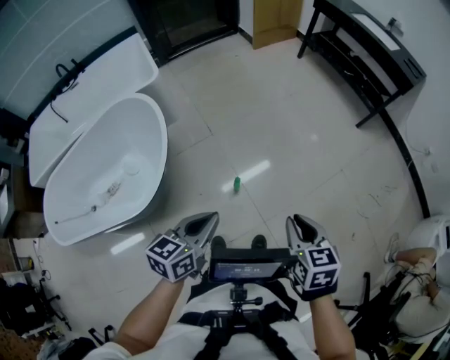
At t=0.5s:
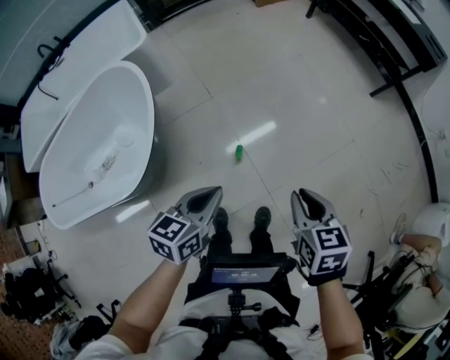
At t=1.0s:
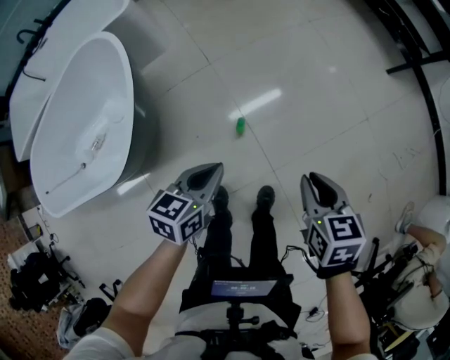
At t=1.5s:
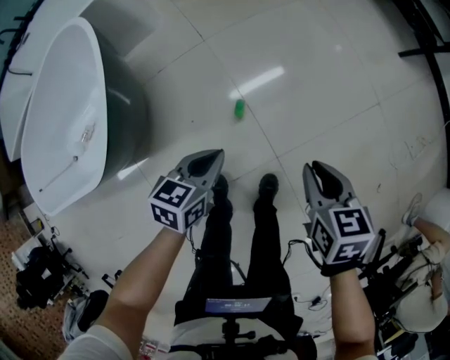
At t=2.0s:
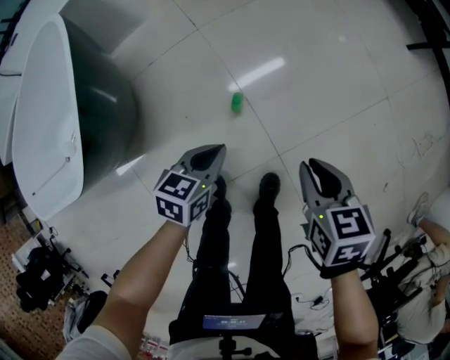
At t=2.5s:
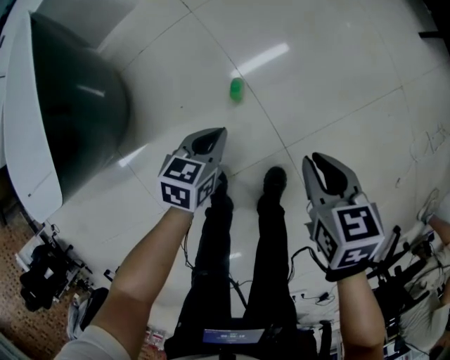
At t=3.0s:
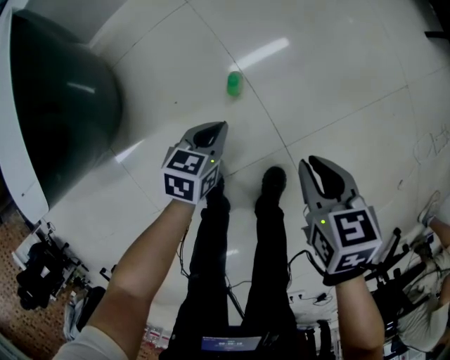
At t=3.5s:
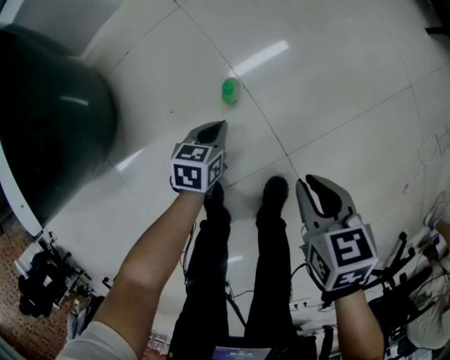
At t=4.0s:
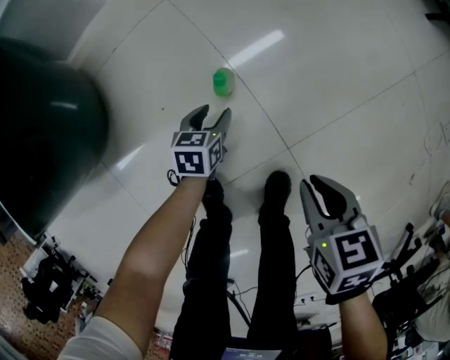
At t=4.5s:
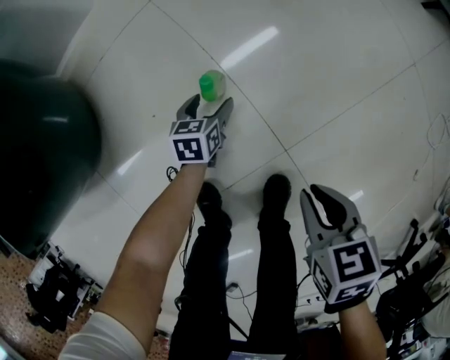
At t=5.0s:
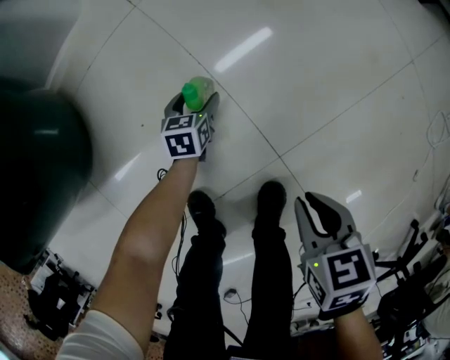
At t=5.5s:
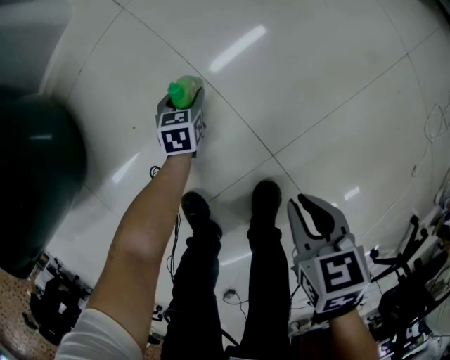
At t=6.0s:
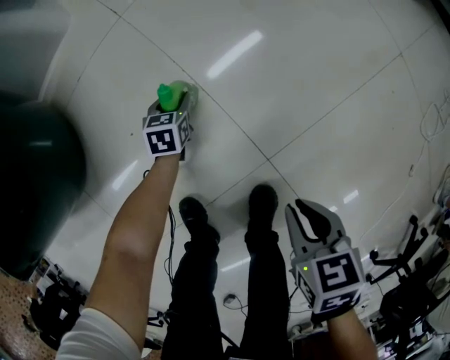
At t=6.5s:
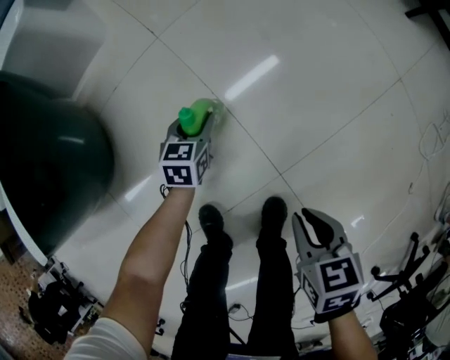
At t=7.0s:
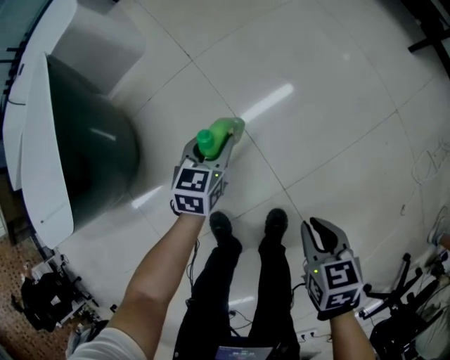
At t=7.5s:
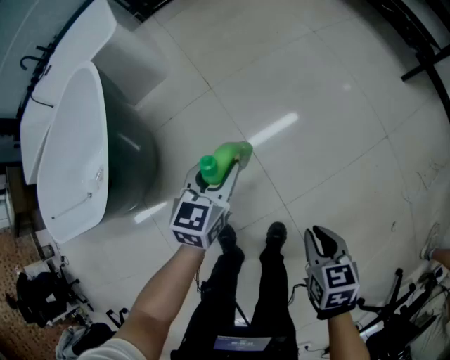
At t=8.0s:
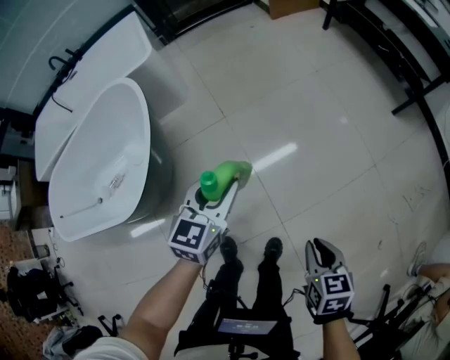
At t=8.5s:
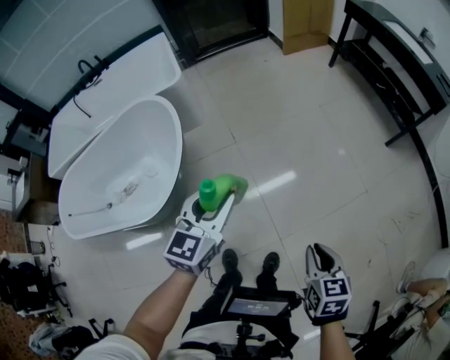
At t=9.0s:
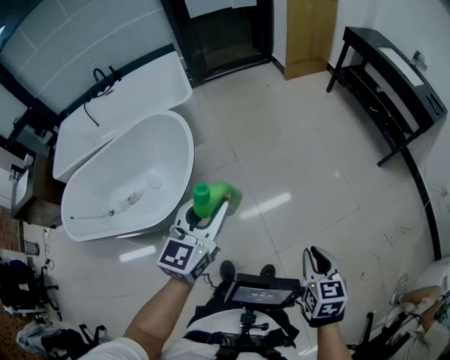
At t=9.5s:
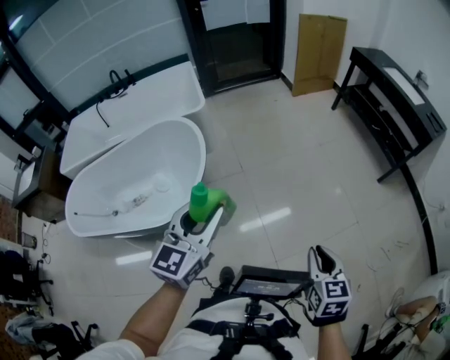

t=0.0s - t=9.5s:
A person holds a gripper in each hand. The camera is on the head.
t=0.0s - t=2.0s: Both grippers move downward, approximately 30 cm. The left gripper turns by about 20 degrees.
t=2.0s - t=4.0s: The left gripper is displaced downward by about 30 cm, and opens up, while the right gripper shifts approximately 15 cm downward.
t=4.0s - t=5.5s: The right gripper goes roughly 5 cm downward; the left gripper is displaced downward and forward by some 15 cm.
t=5.5s - t=7.5s: The right gripper goes roughly 20 cm upward; the left gripper shifts about 50 cm upward, and rotates about 20 degrees.
t=7.5s - t=9.5s: Both grippers move upward, some 35 cm. The left gripper swivels about 30 degrees. Meanwhile the right gripper rotates about 30 degrees.

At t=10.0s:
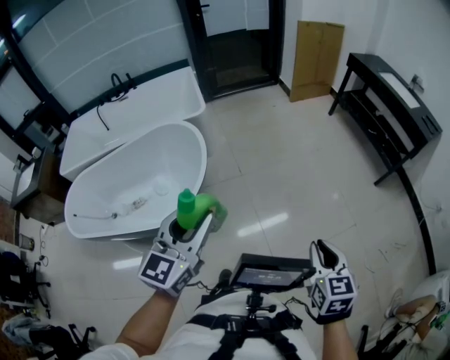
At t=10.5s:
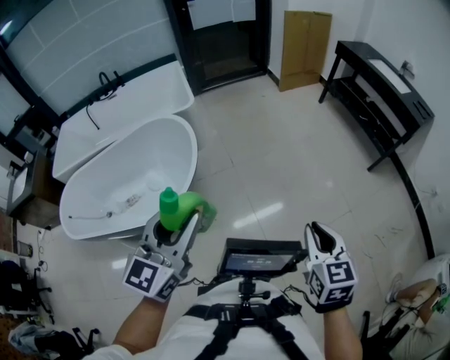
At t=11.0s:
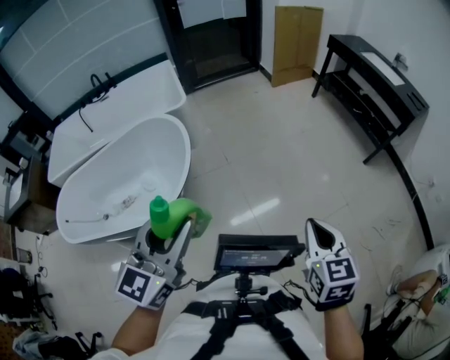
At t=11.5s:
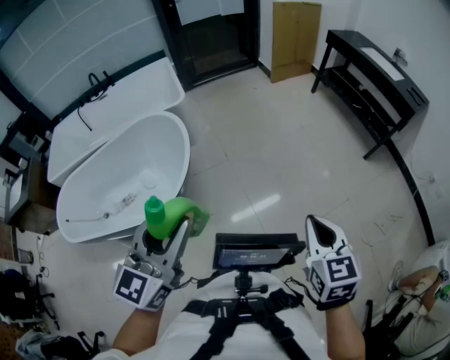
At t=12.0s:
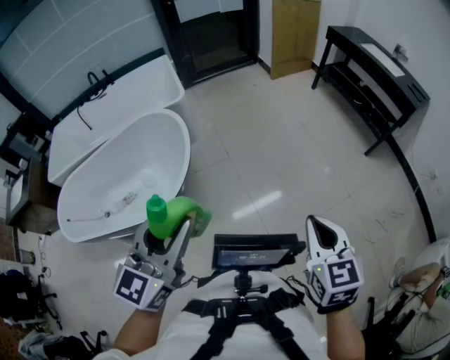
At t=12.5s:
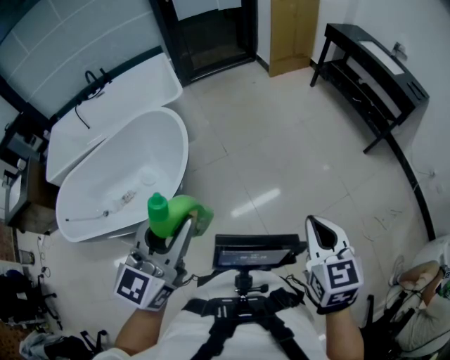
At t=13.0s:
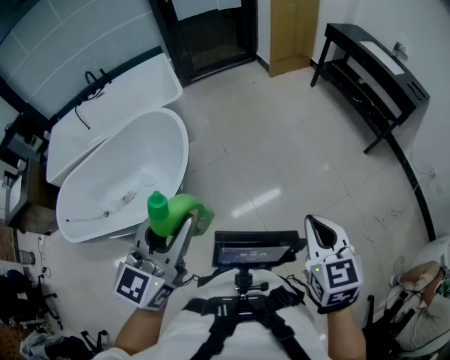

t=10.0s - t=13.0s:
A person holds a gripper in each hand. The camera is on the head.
t=10.0s - t=11.5s: The left gripper shifts about 5 cm backward.
t=11.5s - t=13.0s: The grippers move only a little.

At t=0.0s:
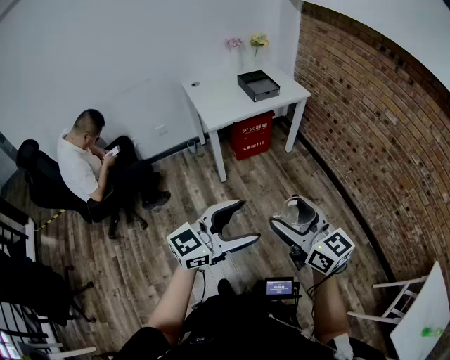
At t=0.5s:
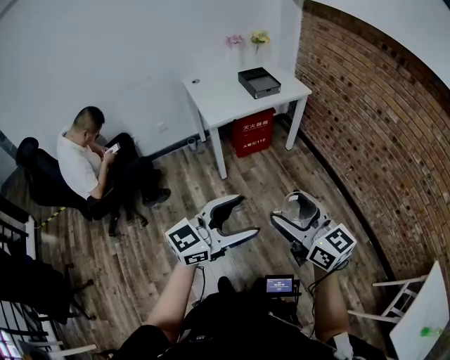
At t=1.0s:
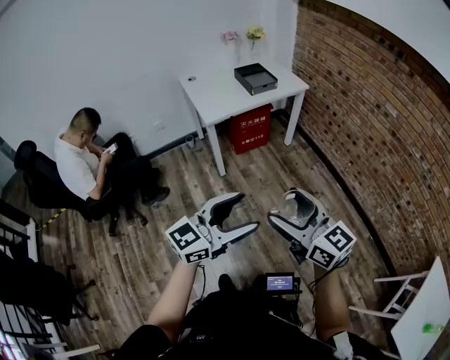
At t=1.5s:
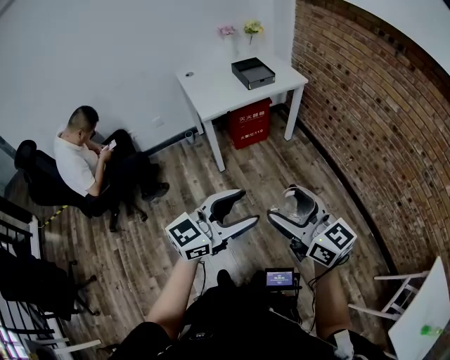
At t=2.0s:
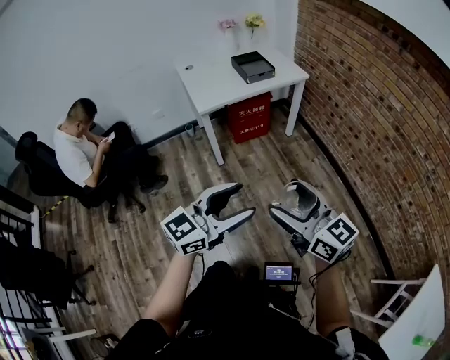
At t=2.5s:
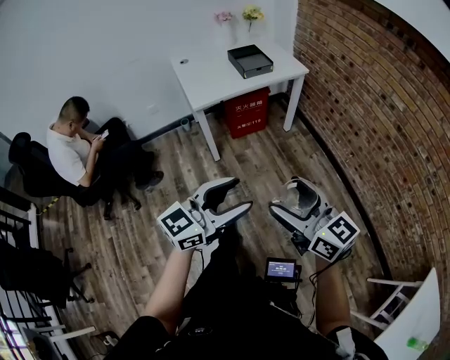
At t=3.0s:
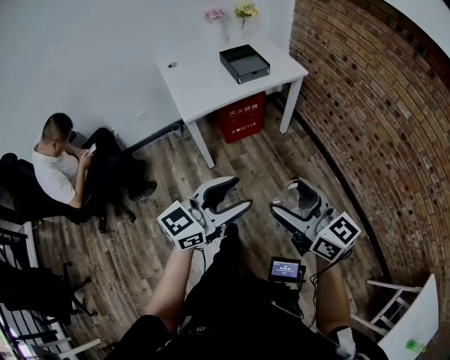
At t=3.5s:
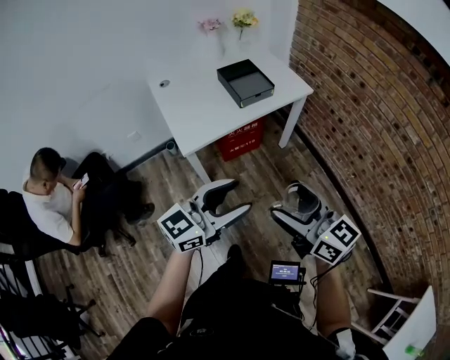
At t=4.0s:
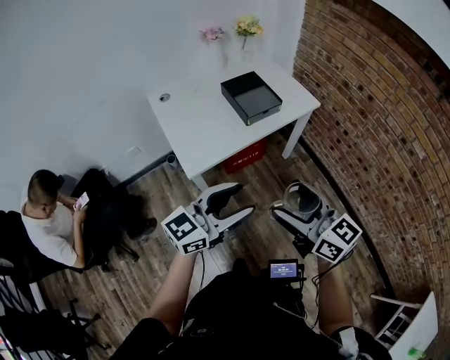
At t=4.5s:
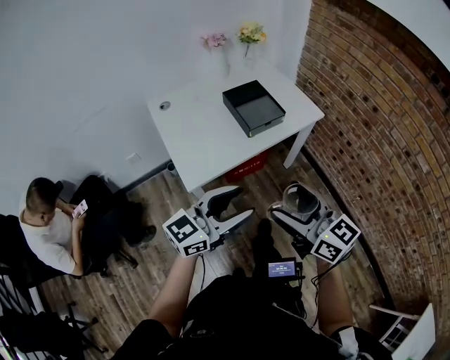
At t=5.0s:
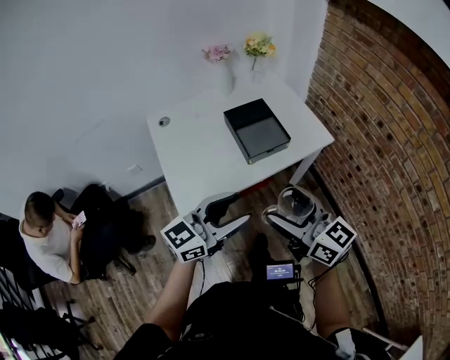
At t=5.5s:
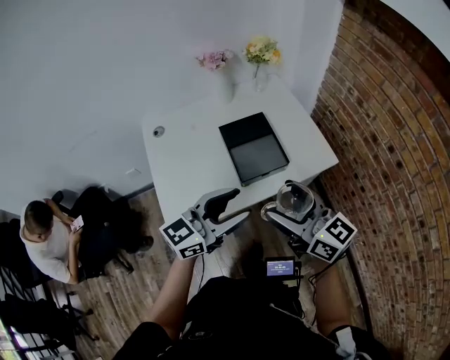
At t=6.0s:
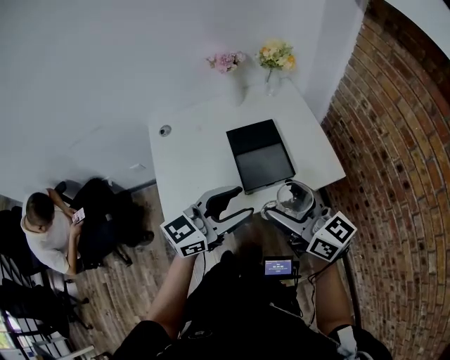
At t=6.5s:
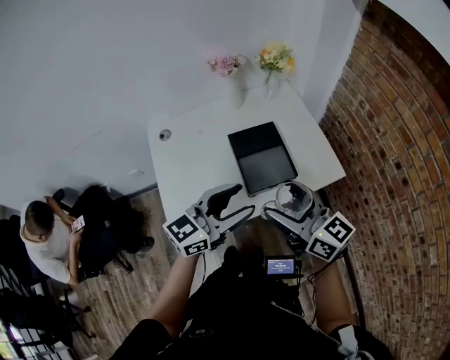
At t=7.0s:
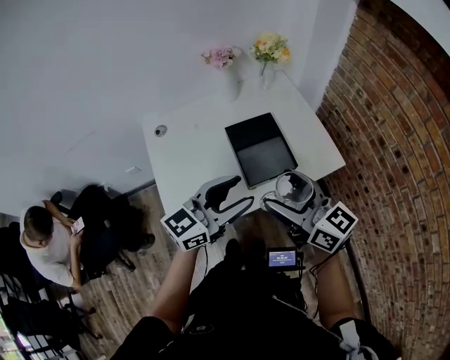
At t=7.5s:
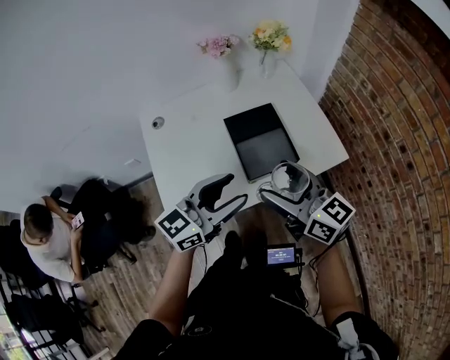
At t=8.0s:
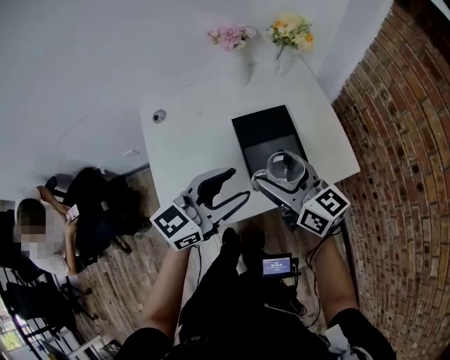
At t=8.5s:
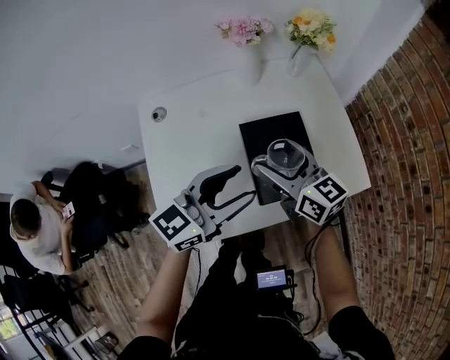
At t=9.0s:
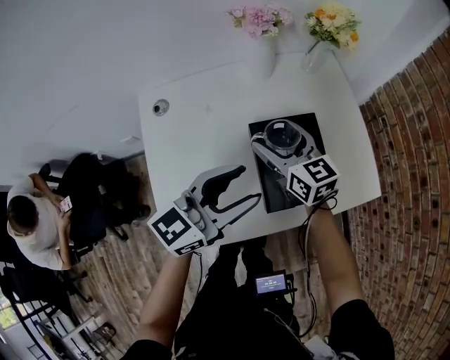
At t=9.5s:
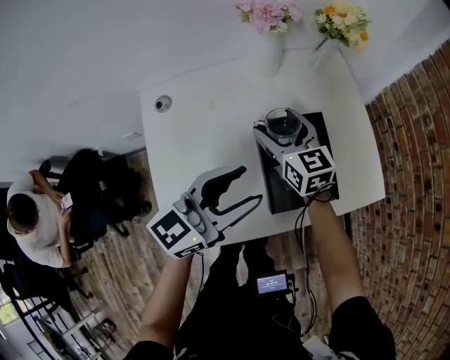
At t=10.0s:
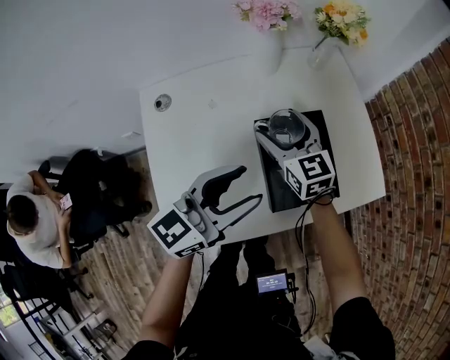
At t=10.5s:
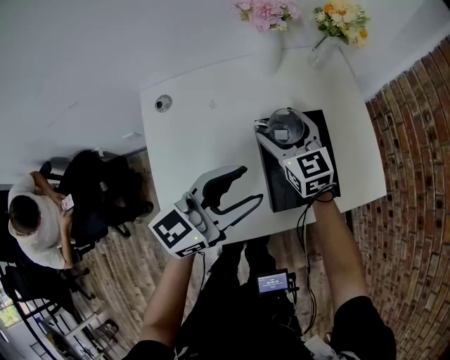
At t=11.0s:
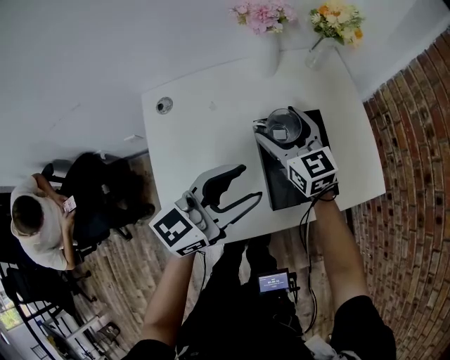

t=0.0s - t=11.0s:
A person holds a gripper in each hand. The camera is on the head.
t=0.0s - t=2.0s: Both grippers move to the right, some 5 cm.
t=2.0s - t=3.5s: Both grippers travel together forward, about 30 cm.
t=3.5s - t=5.5s: Both grippers move forward, approximately 40 cm.
t=5.5s - t=7.5s: The two grippers go about 5 cm forward.
t=7.5s - t=9.0s: The right gripper travels forward, downward and to the left by about 30 cm. Meanwhile the left gripper is displaced forward and downward by some 15 cm.
t=9.0s - t=11.0s: The grippers make only small movements.

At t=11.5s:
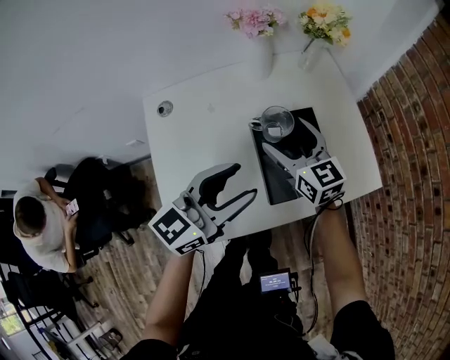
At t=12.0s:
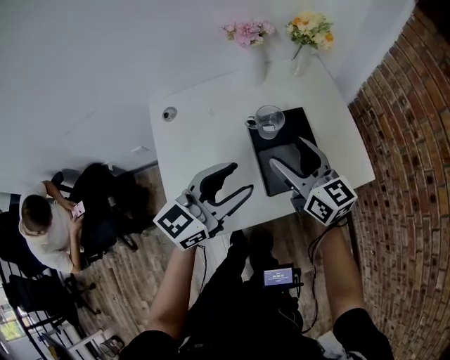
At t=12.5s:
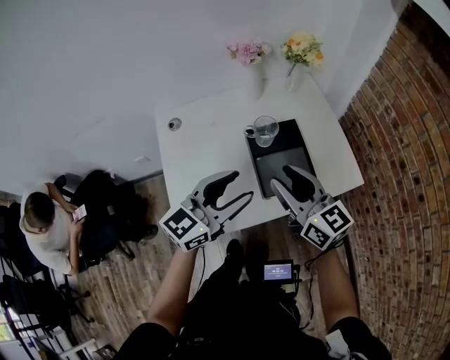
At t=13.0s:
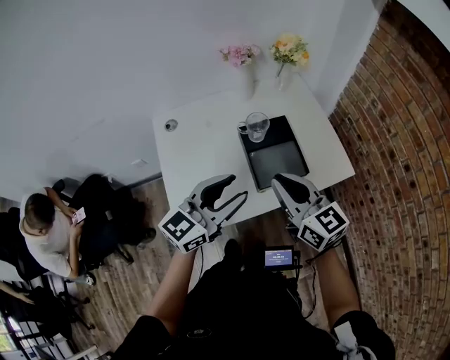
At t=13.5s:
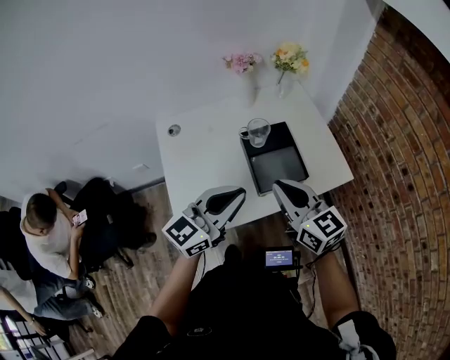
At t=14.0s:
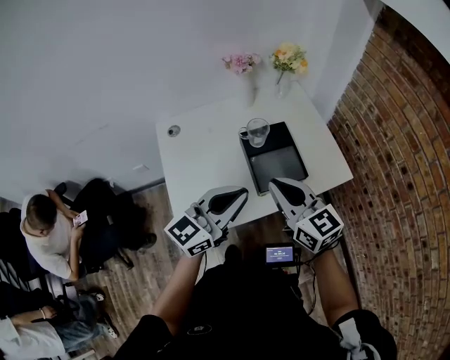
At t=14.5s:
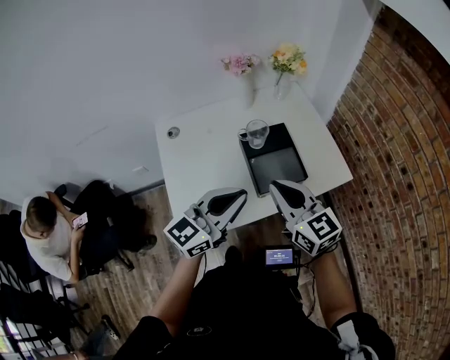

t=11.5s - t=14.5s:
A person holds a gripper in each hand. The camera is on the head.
t=11.5s - t=13.0s: The right gripper goes approximately 25 cm backward and upward, and closes; the left gripper goes roughly 10 cm backward and upward.
t=13.0s - t=14.5s: The left gripper closes.
